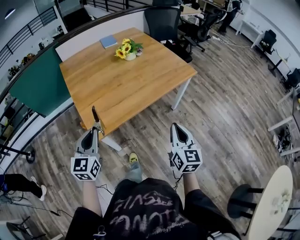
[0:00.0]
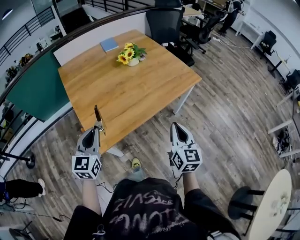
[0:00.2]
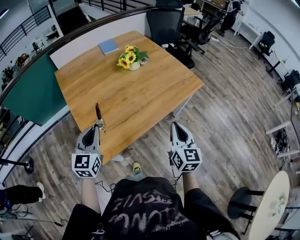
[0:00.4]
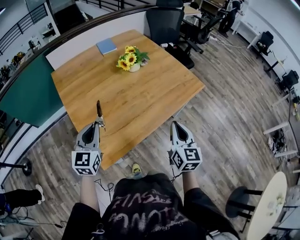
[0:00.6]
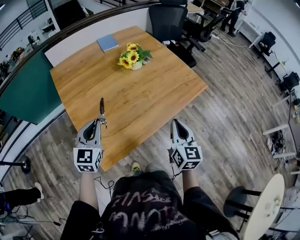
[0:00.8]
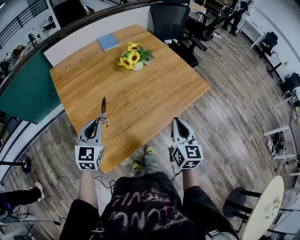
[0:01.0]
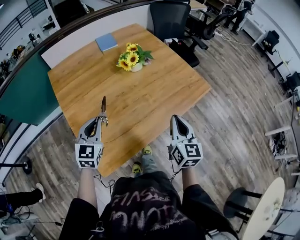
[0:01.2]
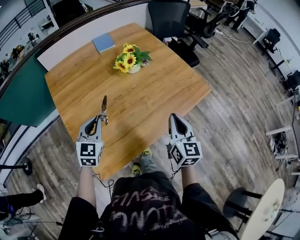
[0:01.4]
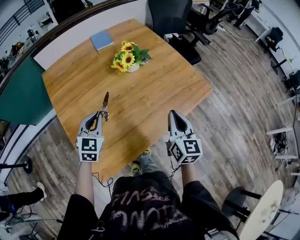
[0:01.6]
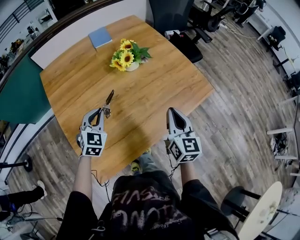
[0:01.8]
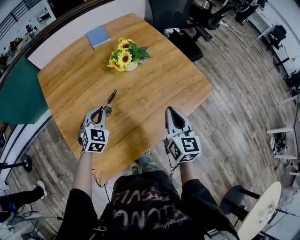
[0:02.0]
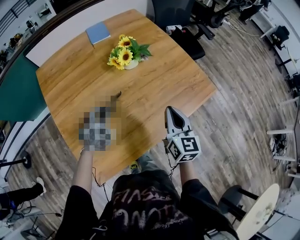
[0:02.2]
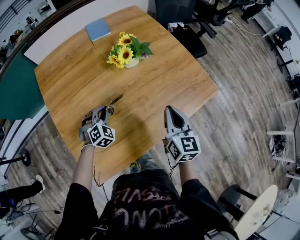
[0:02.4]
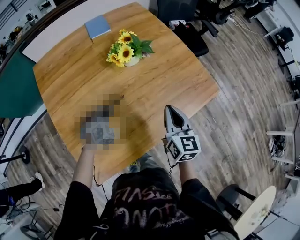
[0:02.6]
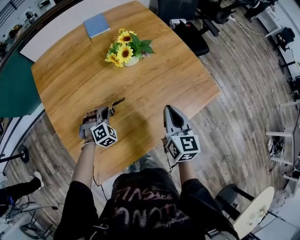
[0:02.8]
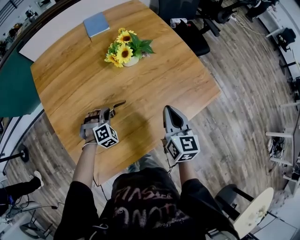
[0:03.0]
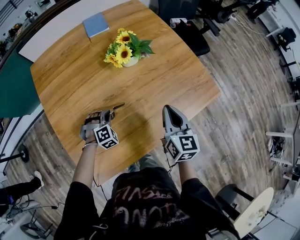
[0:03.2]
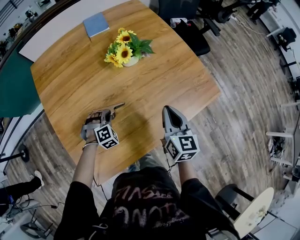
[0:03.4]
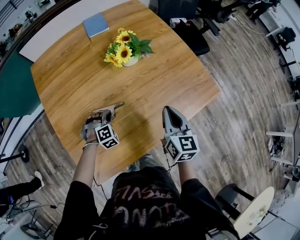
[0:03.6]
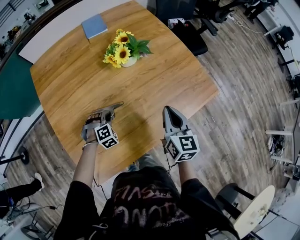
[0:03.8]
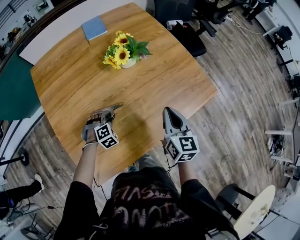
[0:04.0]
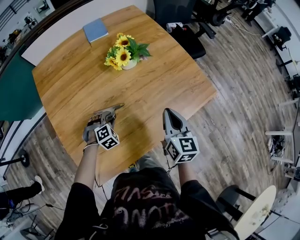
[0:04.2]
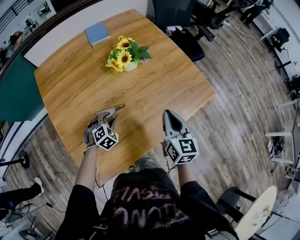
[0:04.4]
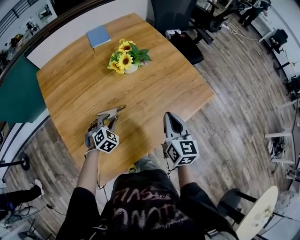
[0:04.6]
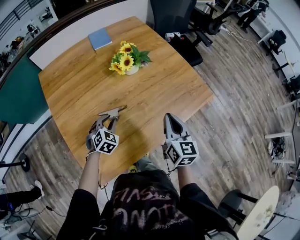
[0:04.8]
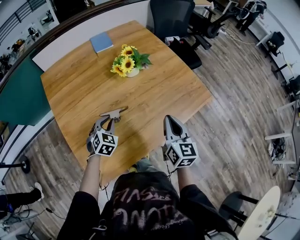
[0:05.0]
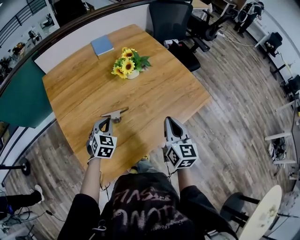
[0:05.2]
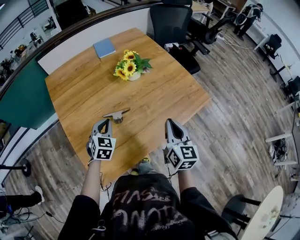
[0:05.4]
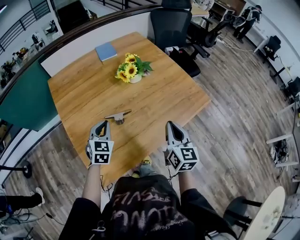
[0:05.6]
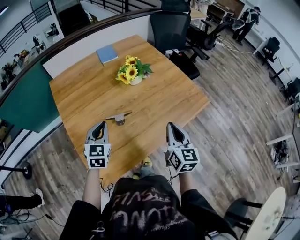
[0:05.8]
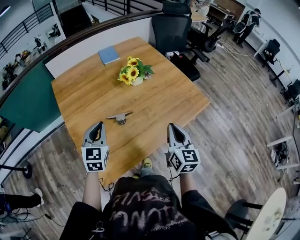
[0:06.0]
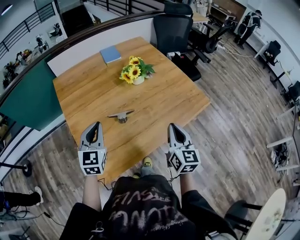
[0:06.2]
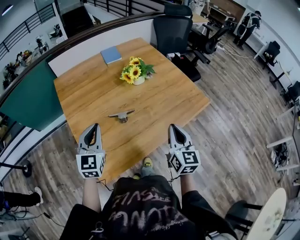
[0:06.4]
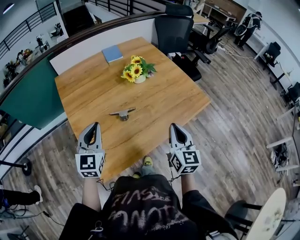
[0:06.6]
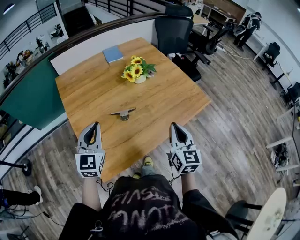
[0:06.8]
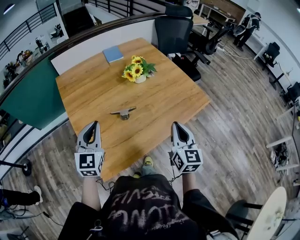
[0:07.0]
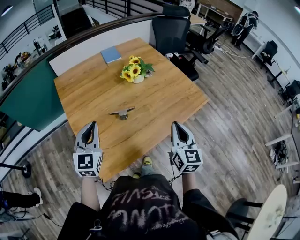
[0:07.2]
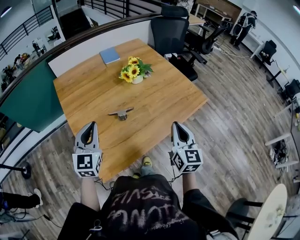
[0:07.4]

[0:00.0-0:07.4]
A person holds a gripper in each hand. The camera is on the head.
0.0 to 1.4 s: The grippers both shift forward by approximately 30 cm.
1.4 to 3.0 s: The right gripper shifts some 15 cm forward and downward, while the left gripper goes some 25 cm downward and forward, and rolls clockwise, seen from behind, by roughly 50 degrees.
3.0 to 4.4 s: The left gripper opens its fingers.
4.4 to 6.0 s: The right gripper heads backward and upward, covering about 10 cm, while the left gripper heads upward and backward, covering approximately 25 cm, angles its fingers upward, by roughly 40 degrees, and closes up.
6.0 to 7.4 s: The left gripper shifts roughly 10 cm backward and upward, while the right gripper shifts by some 5 cm.

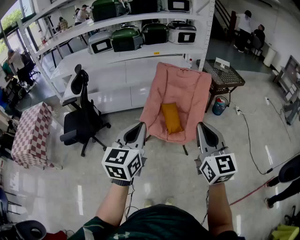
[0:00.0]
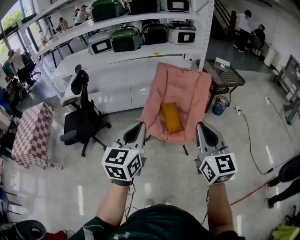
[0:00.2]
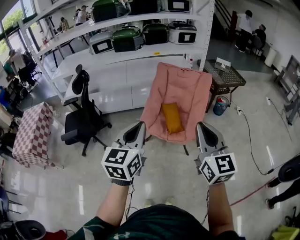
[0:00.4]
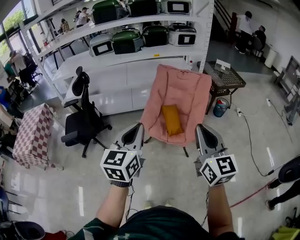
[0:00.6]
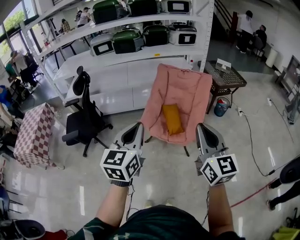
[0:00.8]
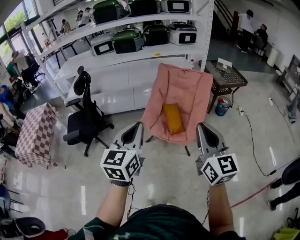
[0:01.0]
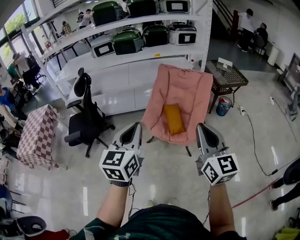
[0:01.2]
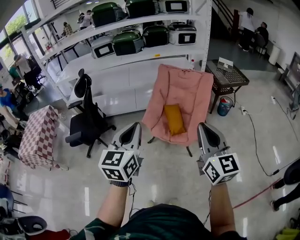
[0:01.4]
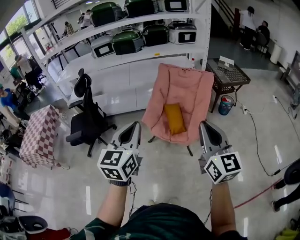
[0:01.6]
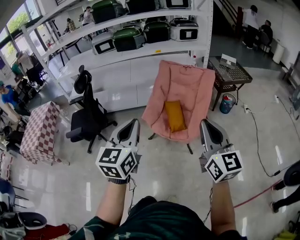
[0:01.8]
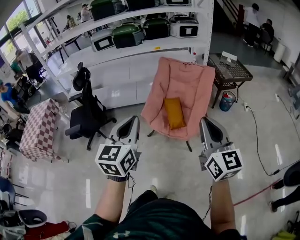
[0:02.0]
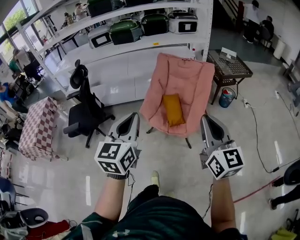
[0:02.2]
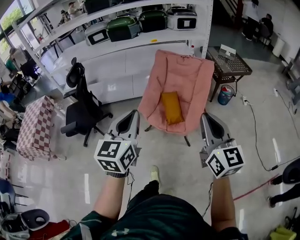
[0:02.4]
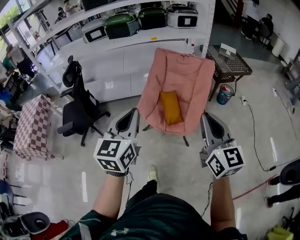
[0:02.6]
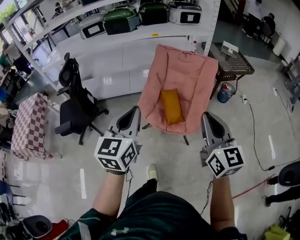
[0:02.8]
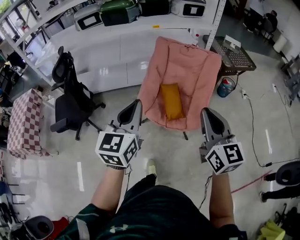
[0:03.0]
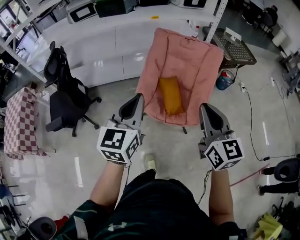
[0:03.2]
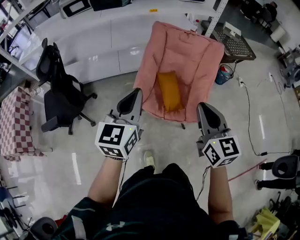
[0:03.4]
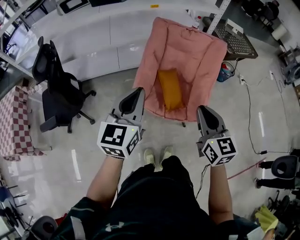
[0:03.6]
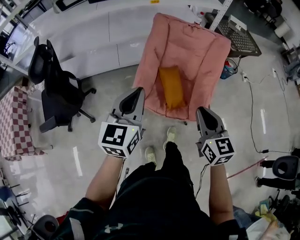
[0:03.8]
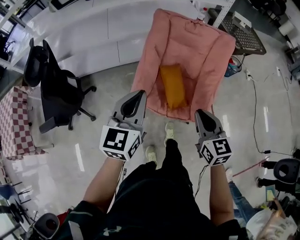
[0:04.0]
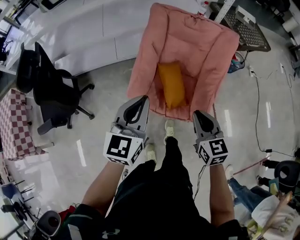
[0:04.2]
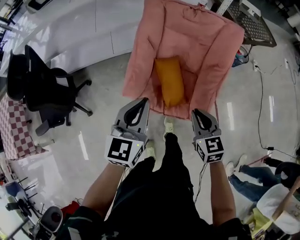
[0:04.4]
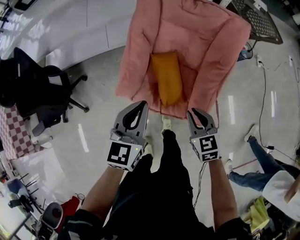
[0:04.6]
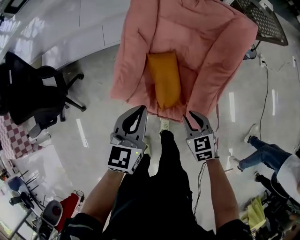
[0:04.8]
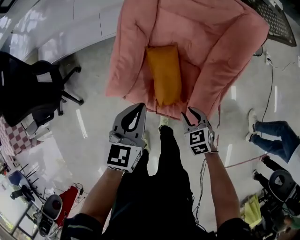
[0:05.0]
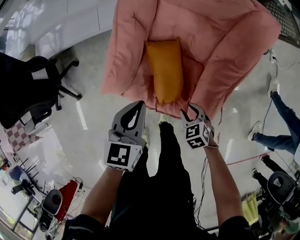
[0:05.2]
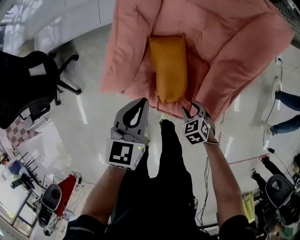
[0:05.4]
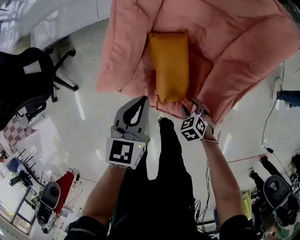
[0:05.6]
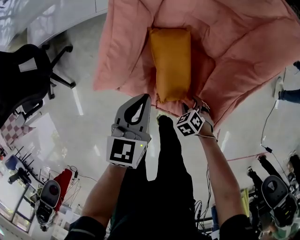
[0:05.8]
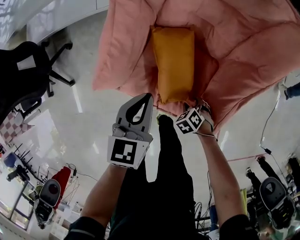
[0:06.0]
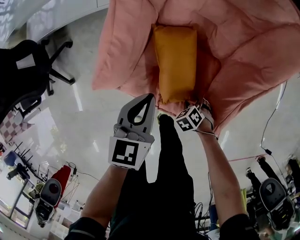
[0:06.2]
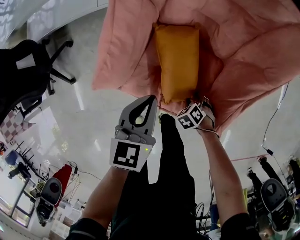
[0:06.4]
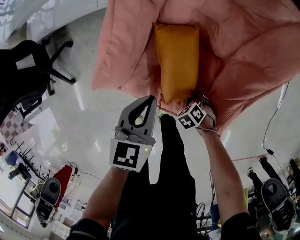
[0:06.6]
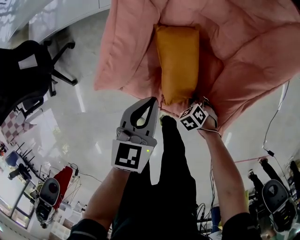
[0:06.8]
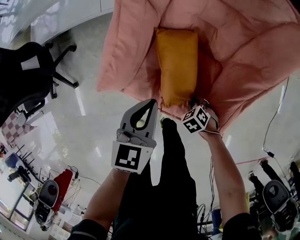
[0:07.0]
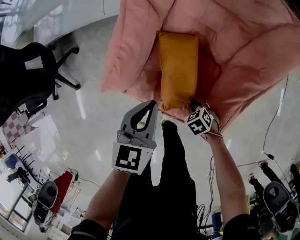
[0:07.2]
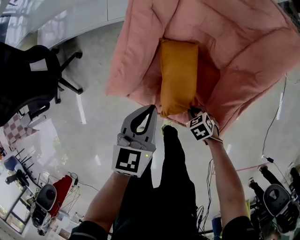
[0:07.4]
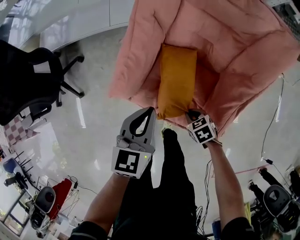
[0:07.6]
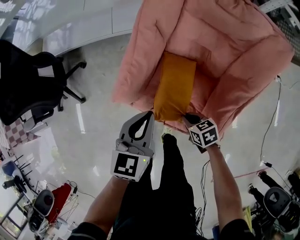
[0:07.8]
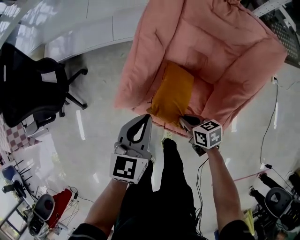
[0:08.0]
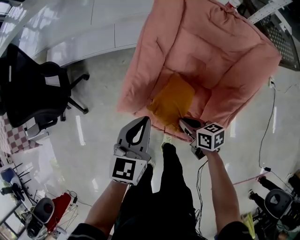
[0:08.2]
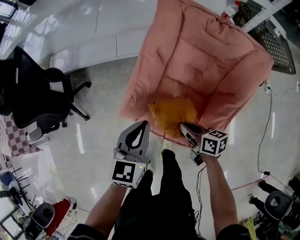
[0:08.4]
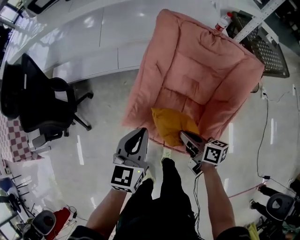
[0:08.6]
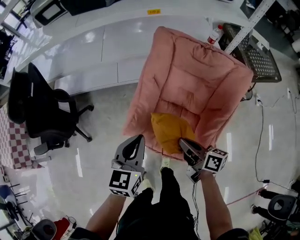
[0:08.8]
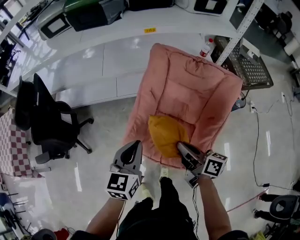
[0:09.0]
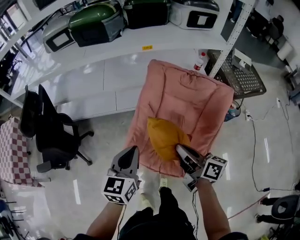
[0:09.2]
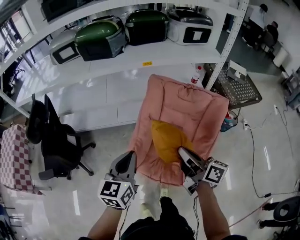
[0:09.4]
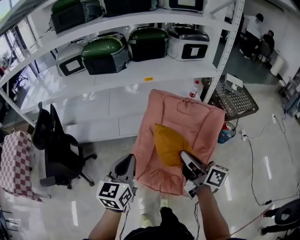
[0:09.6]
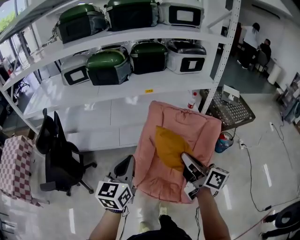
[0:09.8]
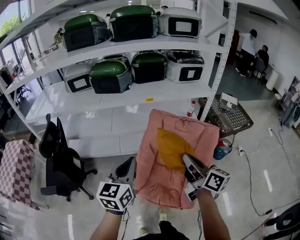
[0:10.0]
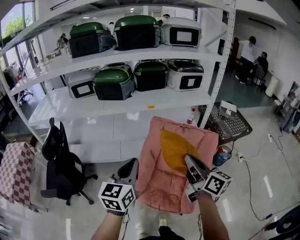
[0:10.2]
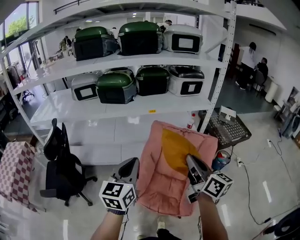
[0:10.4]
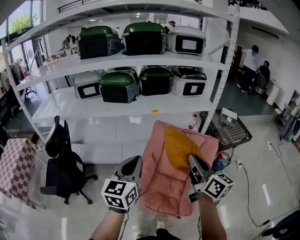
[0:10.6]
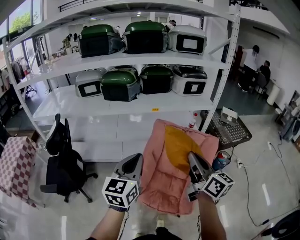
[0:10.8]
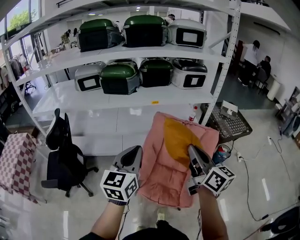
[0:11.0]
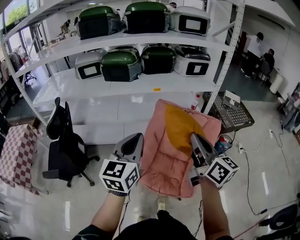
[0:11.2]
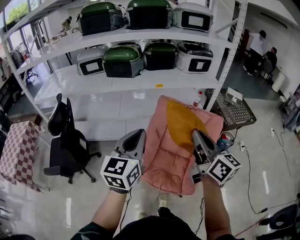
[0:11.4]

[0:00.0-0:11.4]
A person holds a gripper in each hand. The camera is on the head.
0.0 to 1.4 s: The right gripper shifts by about 5 cm.
1.4 to 2.8 s: Both grippers move forward, approximately 15 cm.
2.8 to 4.2 s: The right gripper travels downward and forward by roughly 35 cm, and rotates about 30 degrees. The left gripper shifts approximately 30 cm forward and downward.
4.2 to 5.6 s: The grippers both shift downward by about 40 cm. The right gripper tilts its fingers some 50 degrees downward, and opens up. The left gripper swivels some 30 degrees.
5.6 to 7.2 s: The right gripper reaches some 10 cm downward, then returns, and closes up.
7.2 to 8.6 s: The right gripper travels upward by approximately 35 cm, and tips its fingers upward by approximately 60 degrees. Meanwhile the left gripper travels upward by about 20 cm.
8.6 to 10.0 s: The two grippers go about 35 cm upward. The right gripper rotates approximately 40 degrees.
10.0 to 11.4 s: Both grippers travel together upward, roughly 10 cm.

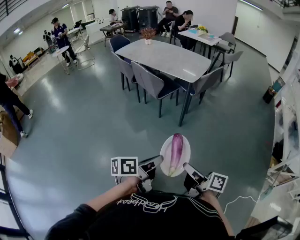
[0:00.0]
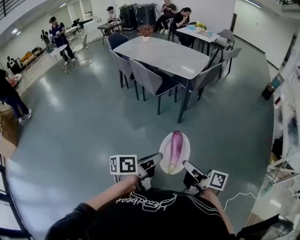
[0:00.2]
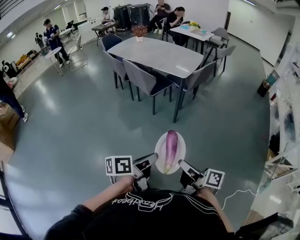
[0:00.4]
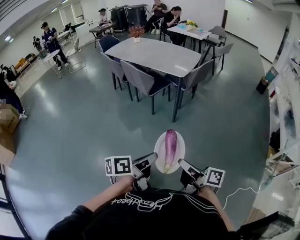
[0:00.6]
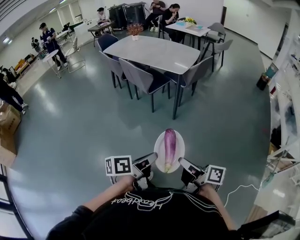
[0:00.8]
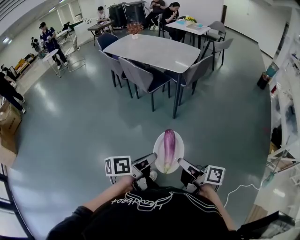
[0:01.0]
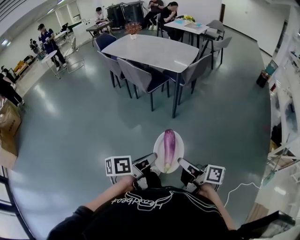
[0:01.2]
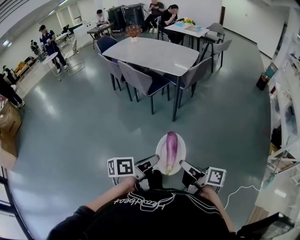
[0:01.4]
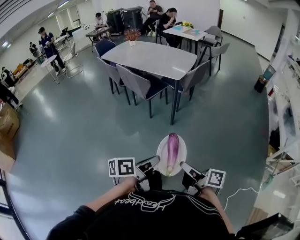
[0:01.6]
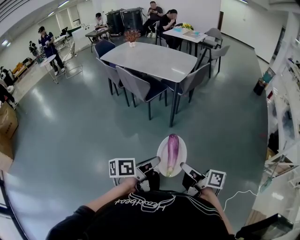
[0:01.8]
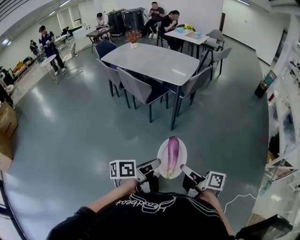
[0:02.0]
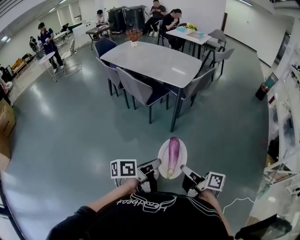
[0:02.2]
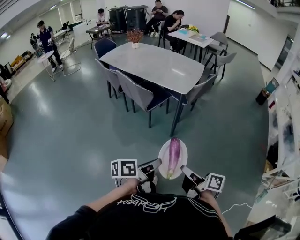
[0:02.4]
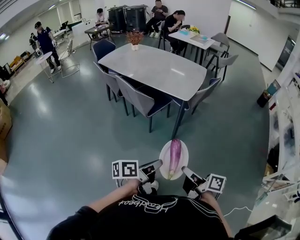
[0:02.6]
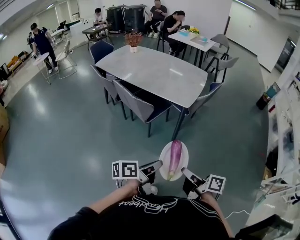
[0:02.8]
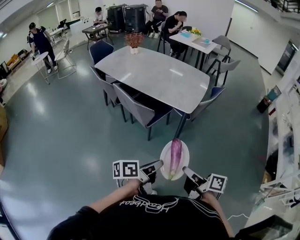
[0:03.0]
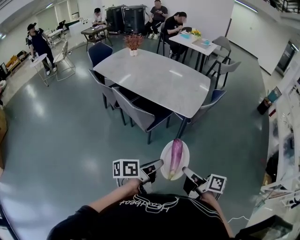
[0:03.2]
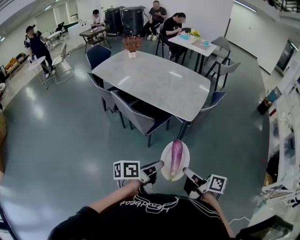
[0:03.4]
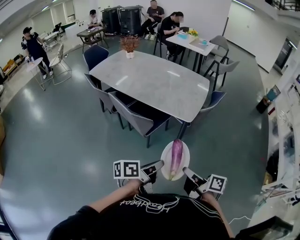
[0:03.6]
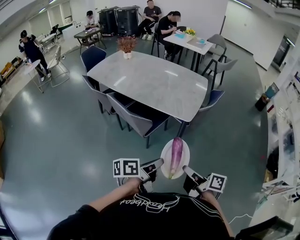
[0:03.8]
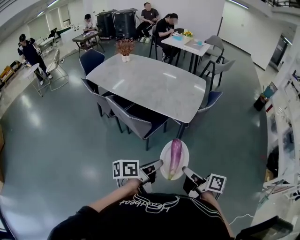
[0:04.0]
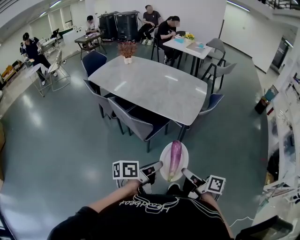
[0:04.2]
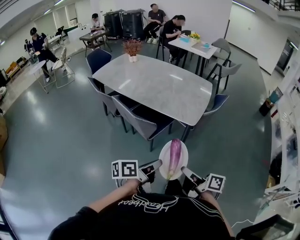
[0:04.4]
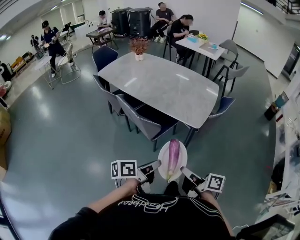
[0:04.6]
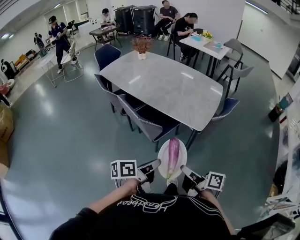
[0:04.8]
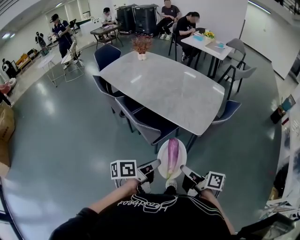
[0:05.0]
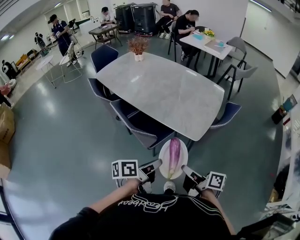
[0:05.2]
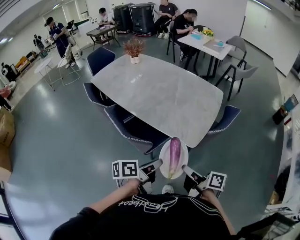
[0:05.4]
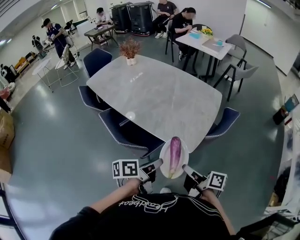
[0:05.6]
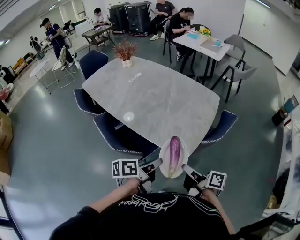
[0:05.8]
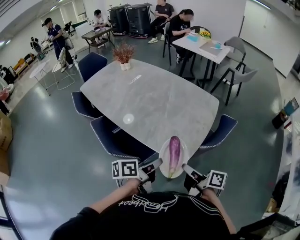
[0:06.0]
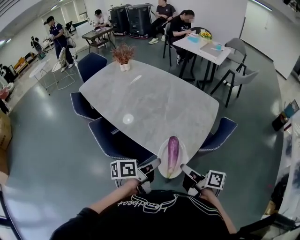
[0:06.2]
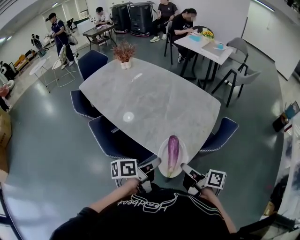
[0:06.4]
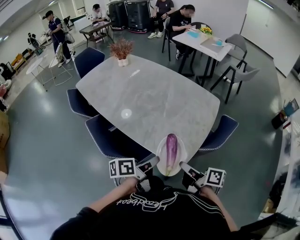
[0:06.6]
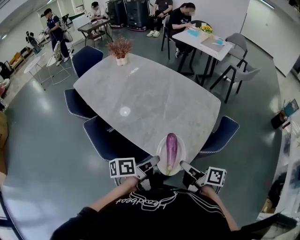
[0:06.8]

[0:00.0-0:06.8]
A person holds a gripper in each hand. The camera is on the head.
0.0 to 1.4 s: The grippers stay close to where they were, moving slightly.
1.4 to 2.8 s: Both grippers travel together forward, roughly 30 cm.
2.8 to 4.0 s: Both grippers move forward, about 15 cm.
4.0 to 5.4 s: The grippers both shift forward by approximately 20 cm.
5.4 to 6.8 s: The grippers both shift forward by about 20 cm.
